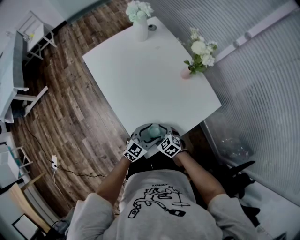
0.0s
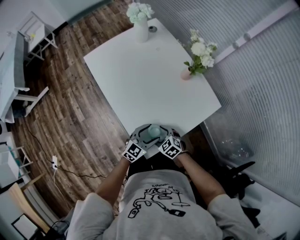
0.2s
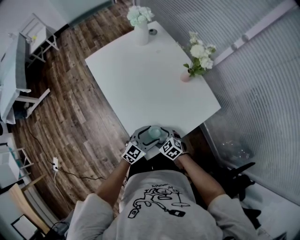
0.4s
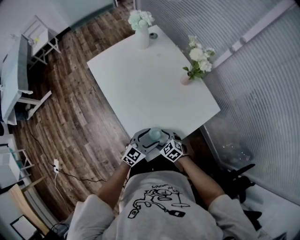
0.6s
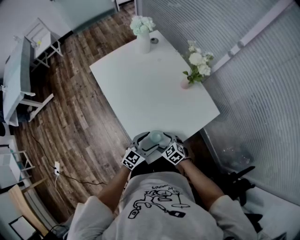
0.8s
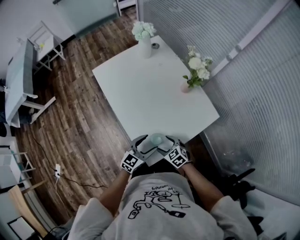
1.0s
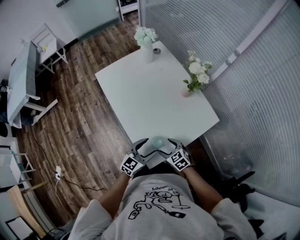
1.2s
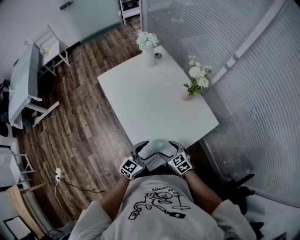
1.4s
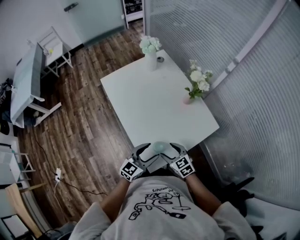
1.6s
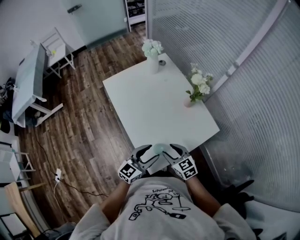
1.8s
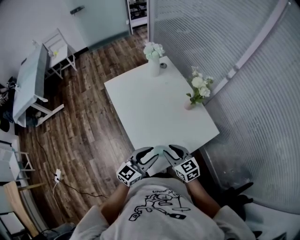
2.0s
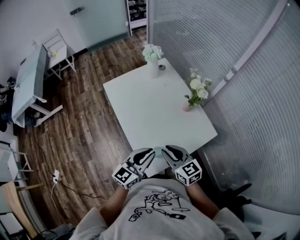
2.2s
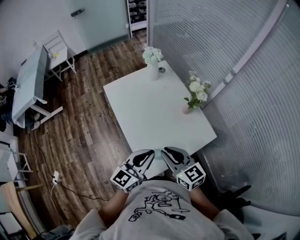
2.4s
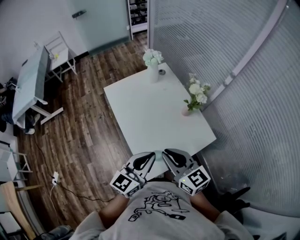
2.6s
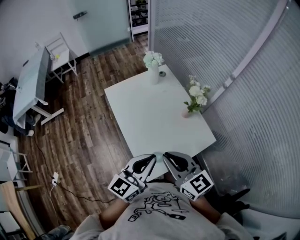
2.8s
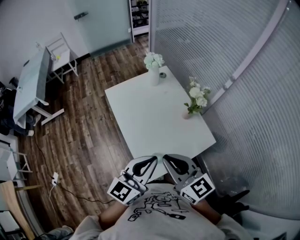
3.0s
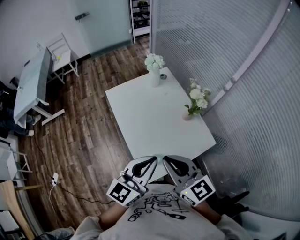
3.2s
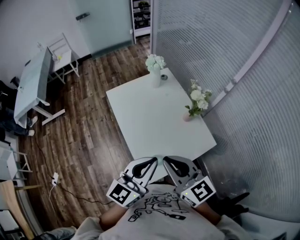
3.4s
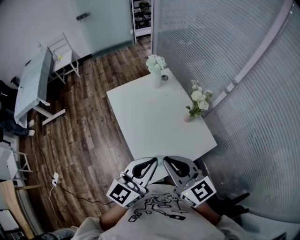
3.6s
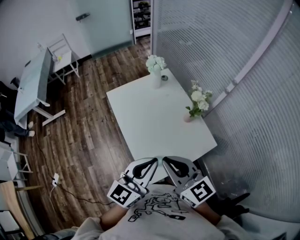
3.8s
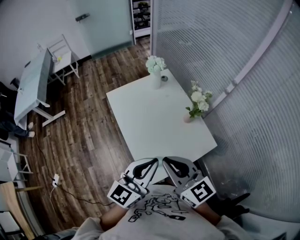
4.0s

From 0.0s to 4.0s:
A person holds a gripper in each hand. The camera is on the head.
From 0.0s to 1.4s: Both grippers move upward, about 10 cm.
From 1.4s to 2.6s: The grippers both shift upward by approximately 25 cm. The left gripper closes. The right gripper angles its fingers upward, by roughly 30 degrees, and closes up.
From 2.6s to 4.0s: The two grippers go roughly 10 cm upward.

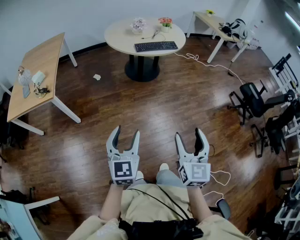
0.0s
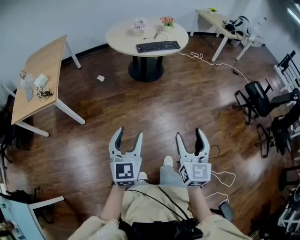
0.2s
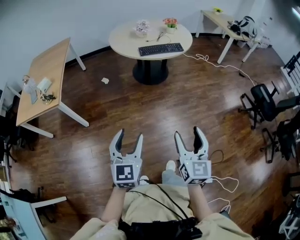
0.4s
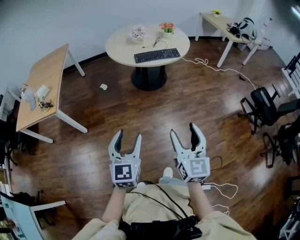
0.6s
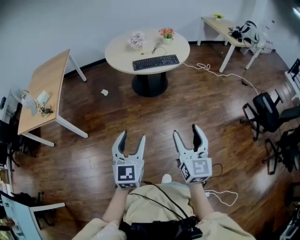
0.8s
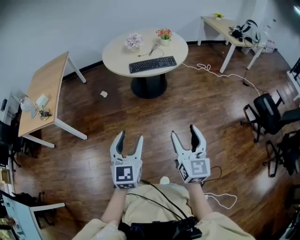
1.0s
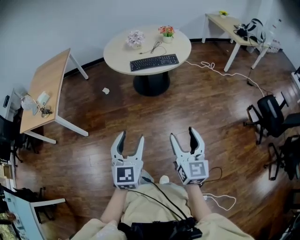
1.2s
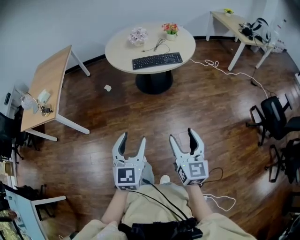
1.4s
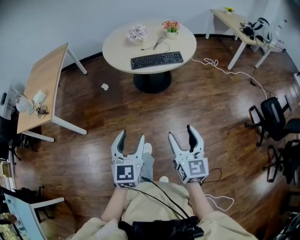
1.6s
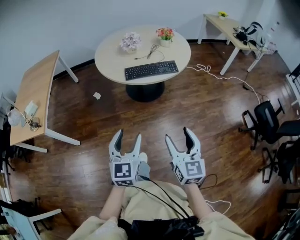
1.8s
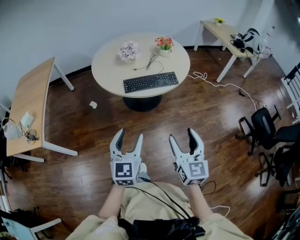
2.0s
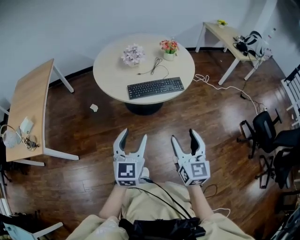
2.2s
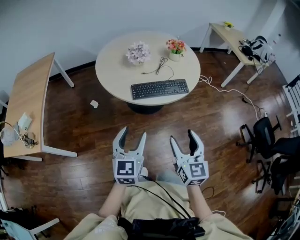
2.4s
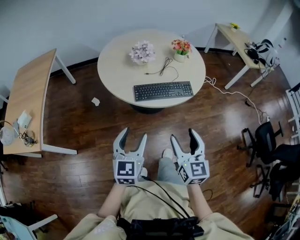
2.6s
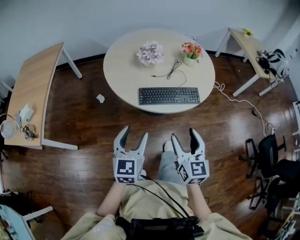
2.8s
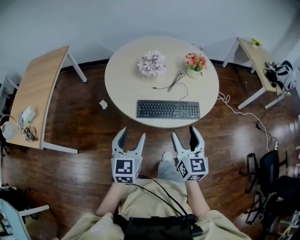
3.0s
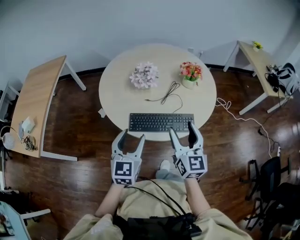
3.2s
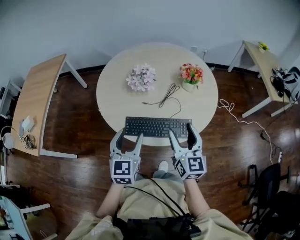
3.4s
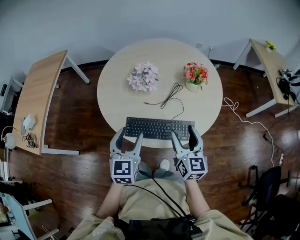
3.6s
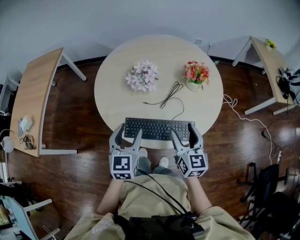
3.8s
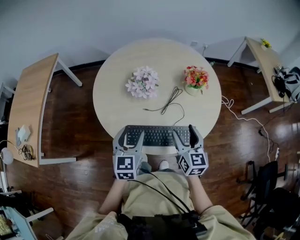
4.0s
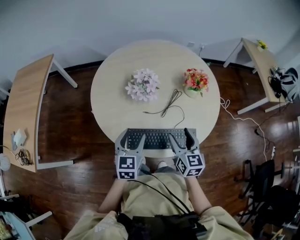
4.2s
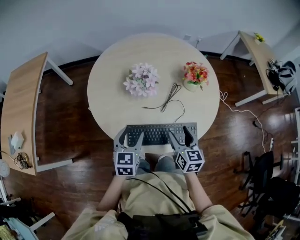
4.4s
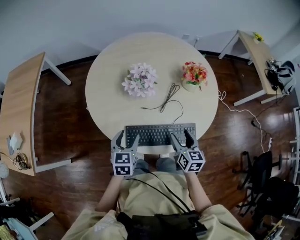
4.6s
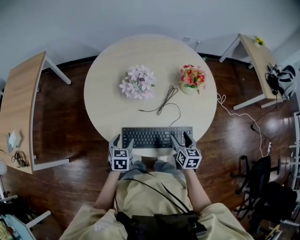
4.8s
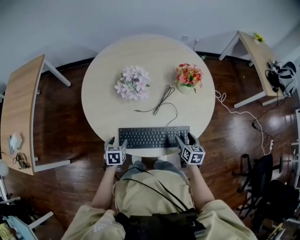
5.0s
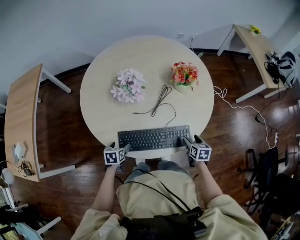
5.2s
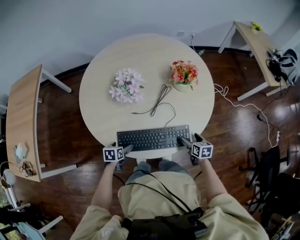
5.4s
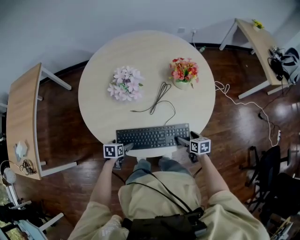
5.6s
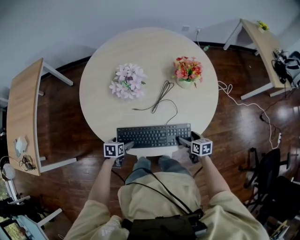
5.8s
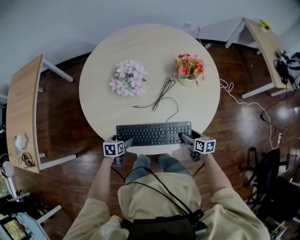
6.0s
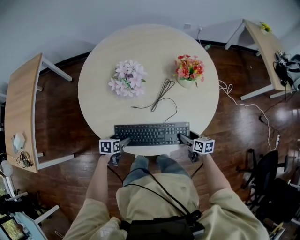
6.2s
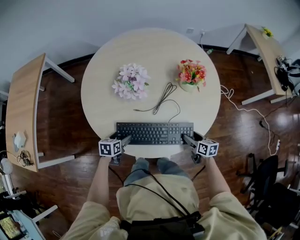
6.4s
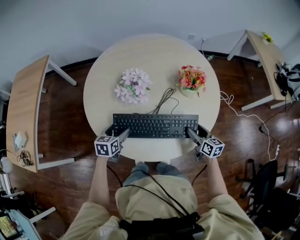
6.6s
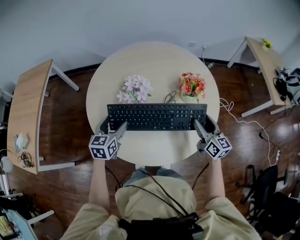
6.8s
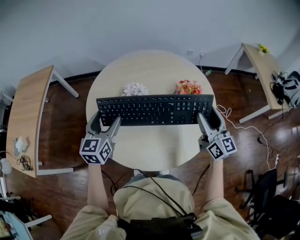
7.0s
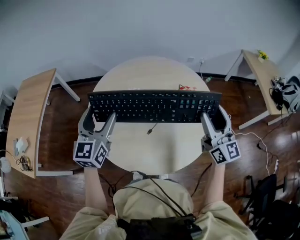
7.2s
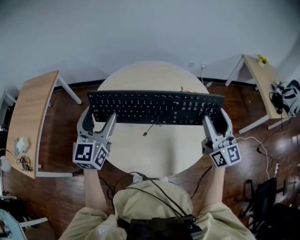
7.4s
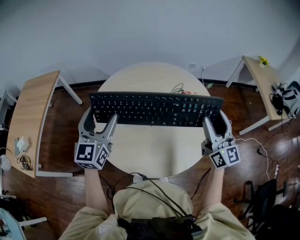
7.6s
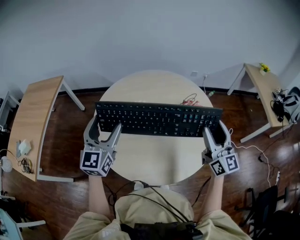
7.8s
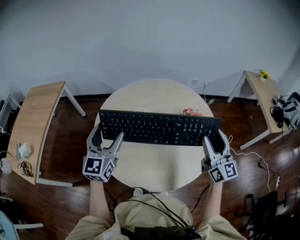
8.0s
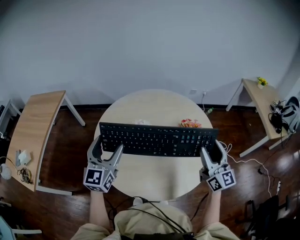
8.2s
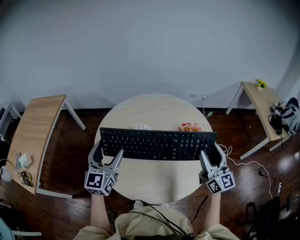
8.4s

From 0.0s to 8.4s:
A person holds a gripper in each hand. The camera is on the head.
From 0.0s to 1.4s: The left gripper heads to the right and forward, covering approximately 30 cm. The right gripper travels forward and to the right by some 30 cm.
From 1.4s to 2.8s: The two grippers travel together, forward, roughly 40 cm.
From 2.8s to 4.2s: The grippers both shift forward by some 30 cm.
From 4.2s to 5.6s: The right gripper heads downward and to the right, covering roughly 30 cm, and swivels some 40 degrees; the left gripper moves downward, about 25 cm, tilts its fingers about 40 degrees downward, and opens up.
From 5.6s to 7.0s: The right gripper moves upward, some 40 cm, points its fingers some 50 degrees further upward, and closes its fingers. Meanwhile the left gripper heads upward and forward, covering roughly 40 cm, and tilts its fingers some 50 degrees upward.
From 7.0s to 8.4s: The two grippers go some 10 cm upward.

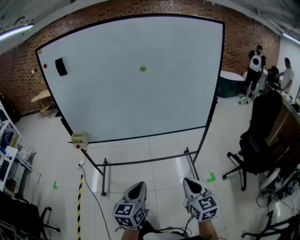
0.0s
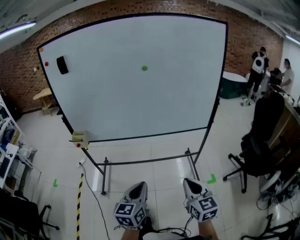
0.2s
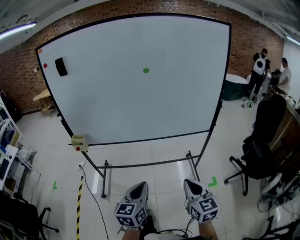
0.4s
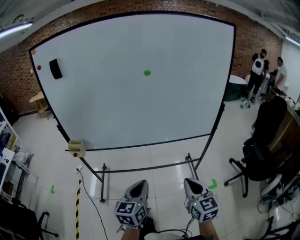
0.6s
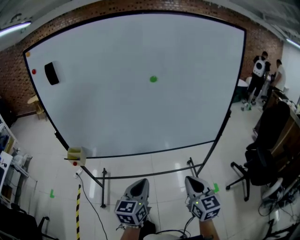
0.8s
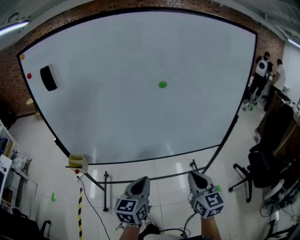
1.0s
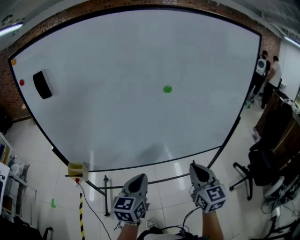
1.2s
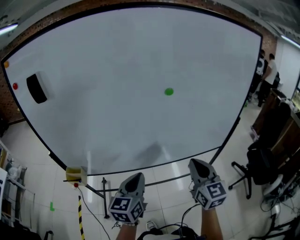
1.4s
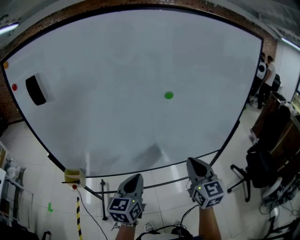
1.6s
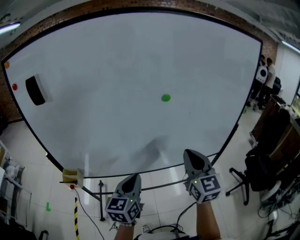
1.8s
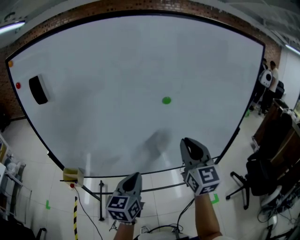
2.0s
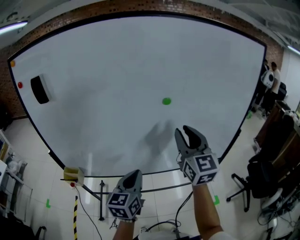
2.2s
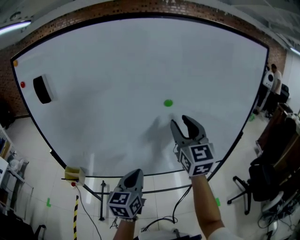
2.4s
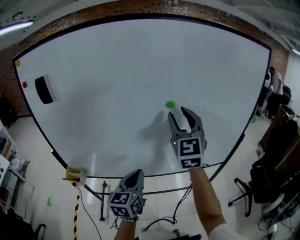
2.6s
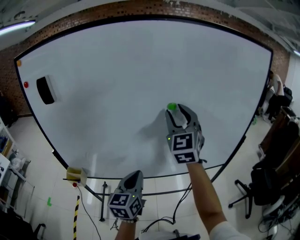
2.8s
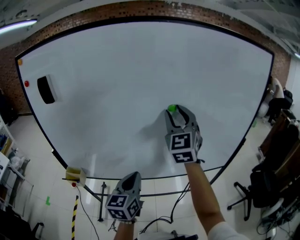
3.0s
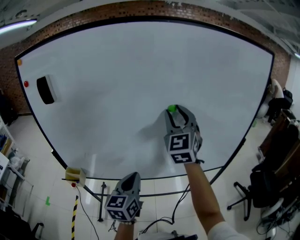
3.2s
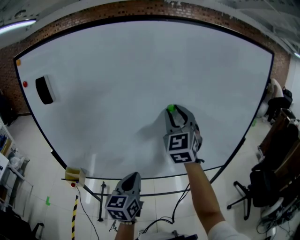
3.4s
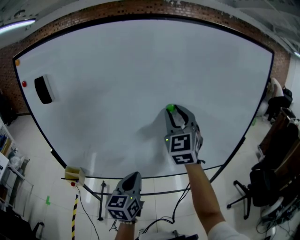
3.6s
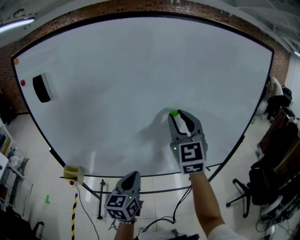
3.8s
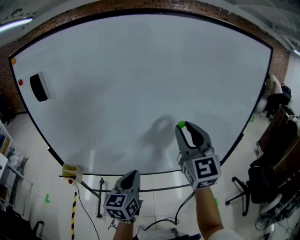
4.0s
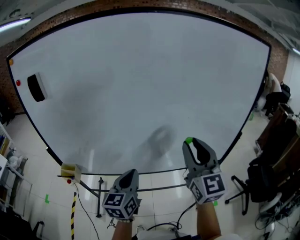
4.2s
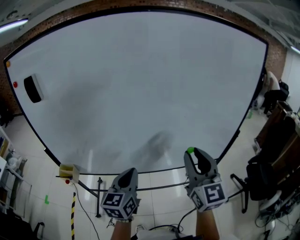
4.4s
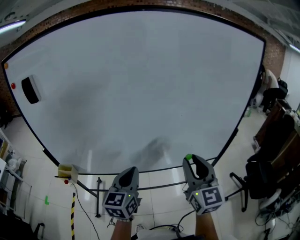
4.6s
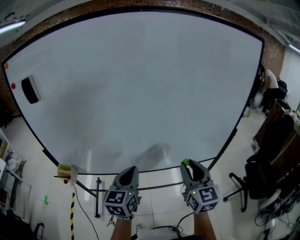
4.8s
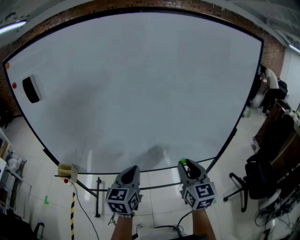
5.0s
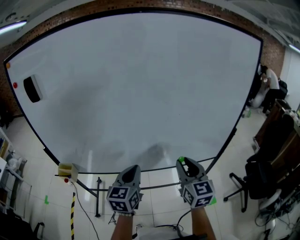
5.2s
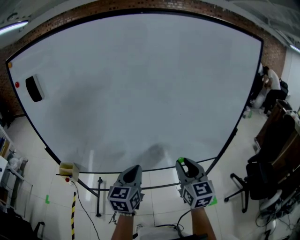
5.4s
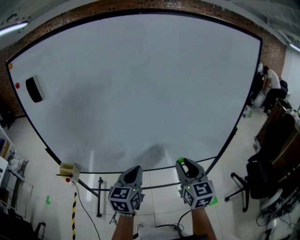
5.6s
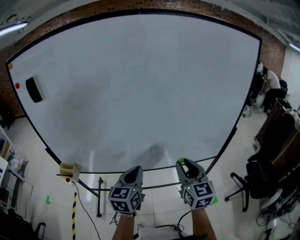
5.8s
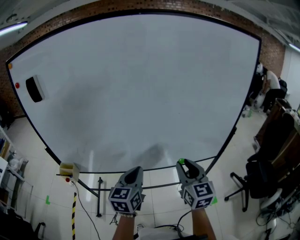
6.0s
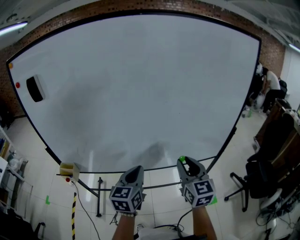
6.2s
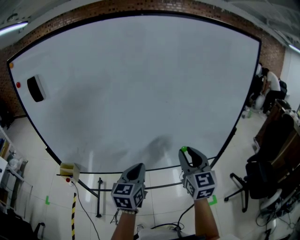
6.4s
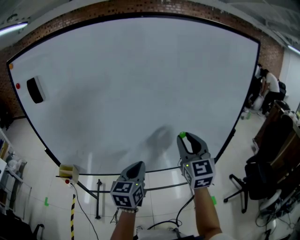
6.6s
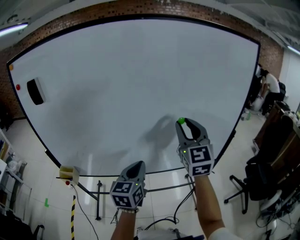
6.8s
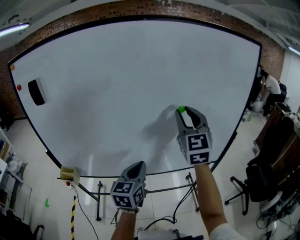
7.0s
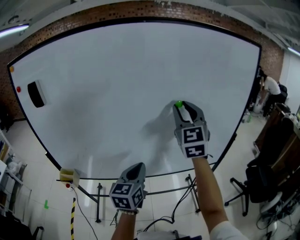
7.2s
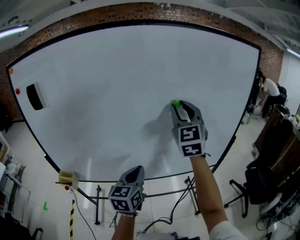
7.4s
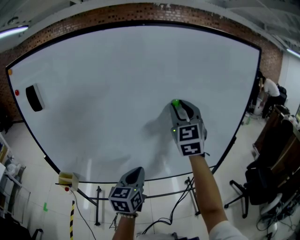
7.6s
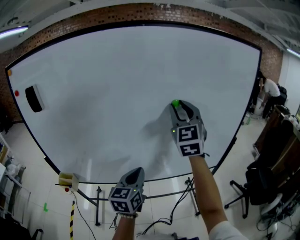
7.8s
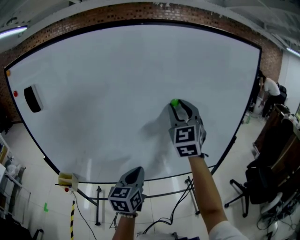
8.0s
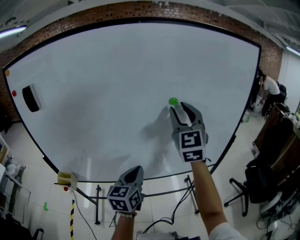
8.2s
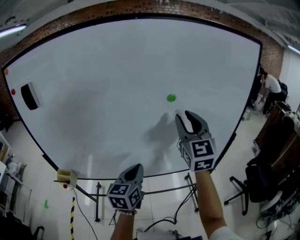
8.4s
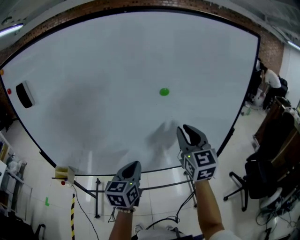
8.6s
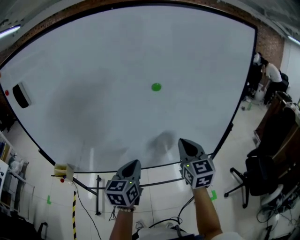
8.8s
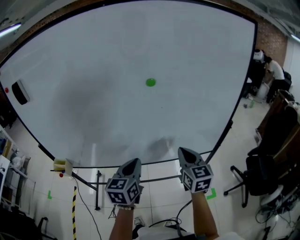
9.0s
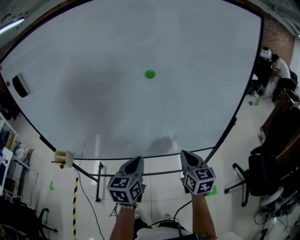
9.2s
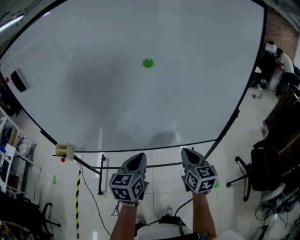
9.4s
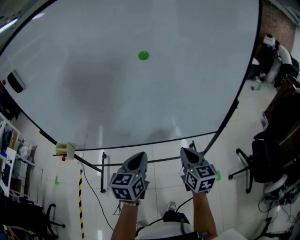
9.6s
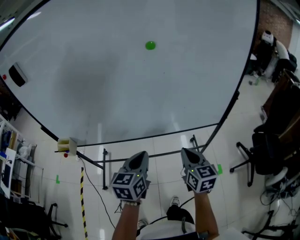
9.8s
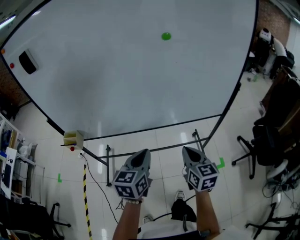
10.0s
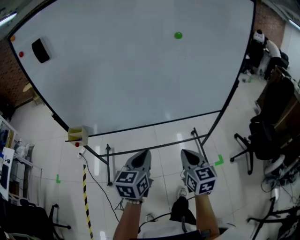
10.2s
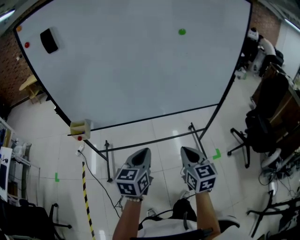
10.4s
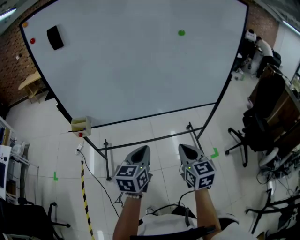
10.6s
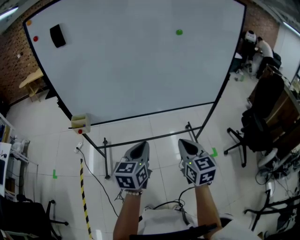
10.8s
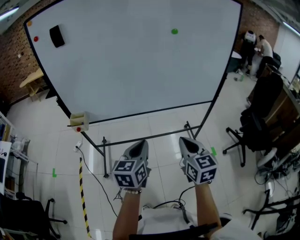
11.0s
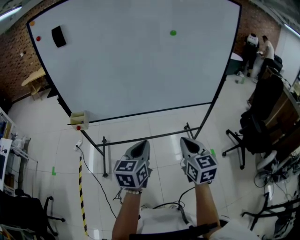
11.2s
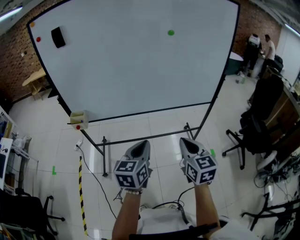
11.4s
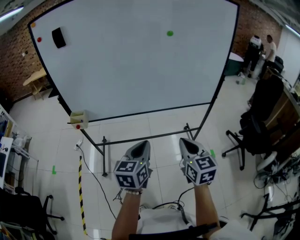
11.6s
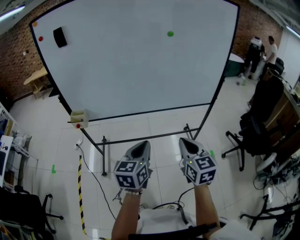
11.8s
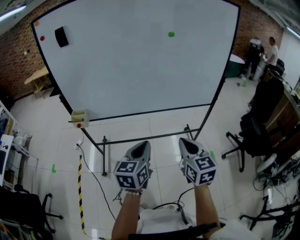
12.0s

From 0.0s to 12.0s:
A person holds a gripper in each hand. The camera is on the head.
From 0.0s to 1.6s: Both grippers move forward, some 35 cm.
From 1.6s to 3.0s: The right gripper heads upward and forward, covering some 25 cm, swivels some 30 degrees, and opens.
From 3.0s to 4.4s: The right gripper is displaced backward, to the right and downward by roughly 20 cm, and swivels about 20 degrees.
From 4.4s to 6.0s: The right gripper moves downward, approximately 10 cm.
From 6.0s to 7.6s: The right gripper travels upward and forward by approximately 25 cm, and rotates about 30 degrees.
From 7.6s to 9.0s: The right gripper moves downward and to the right, roughly 25 cm, swivels about 40 degrees, and closes. Meanwhile the left gripper is displaced to the right by approximately 10 cm.
From 9.0s to 10.4s: The grippers both shift backward and to the left by some 30 cm.
From 10.4s to 12.0s: The left gripper is displaced backward and to the right by approximately 10 cm. Meanwhile the right gripper is displaced backward, upward and to the right by some 10 cm.
